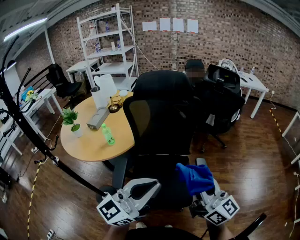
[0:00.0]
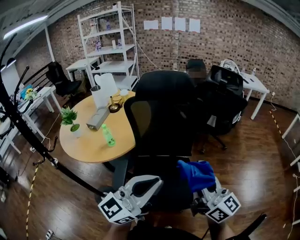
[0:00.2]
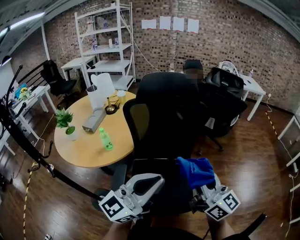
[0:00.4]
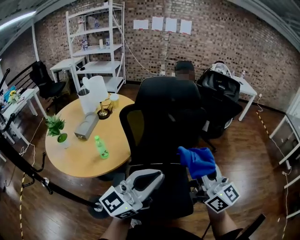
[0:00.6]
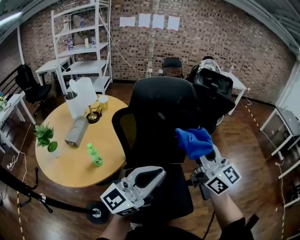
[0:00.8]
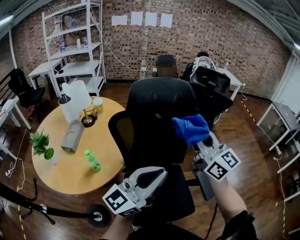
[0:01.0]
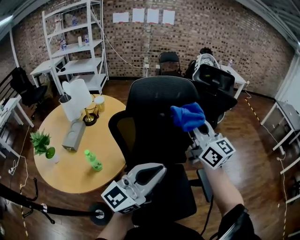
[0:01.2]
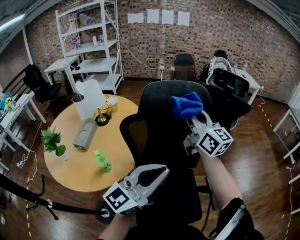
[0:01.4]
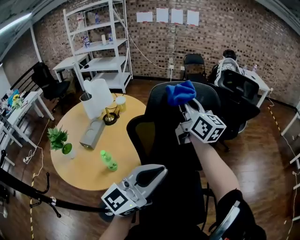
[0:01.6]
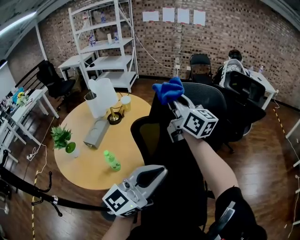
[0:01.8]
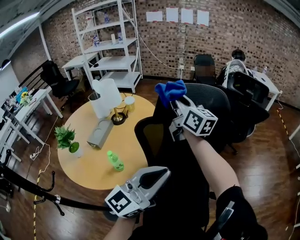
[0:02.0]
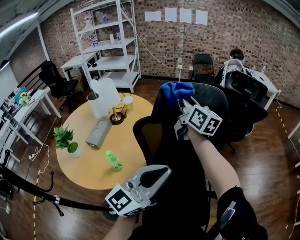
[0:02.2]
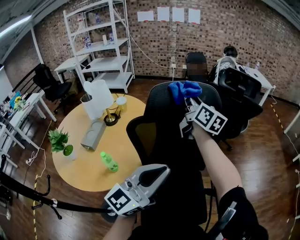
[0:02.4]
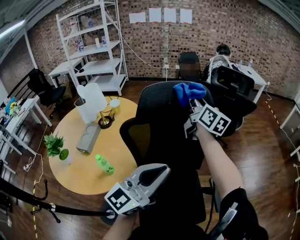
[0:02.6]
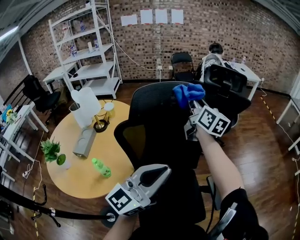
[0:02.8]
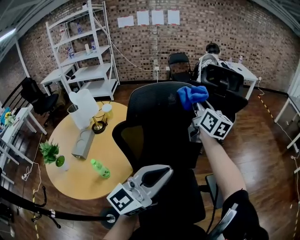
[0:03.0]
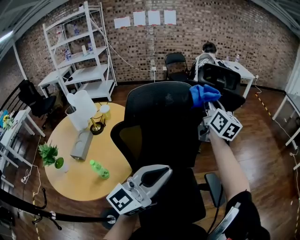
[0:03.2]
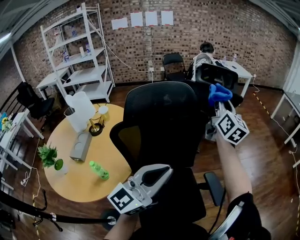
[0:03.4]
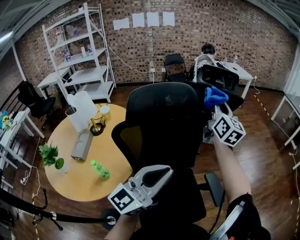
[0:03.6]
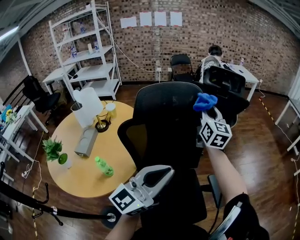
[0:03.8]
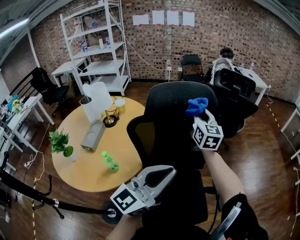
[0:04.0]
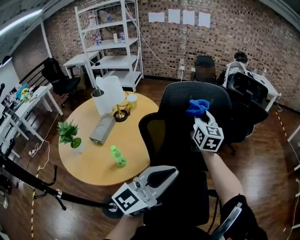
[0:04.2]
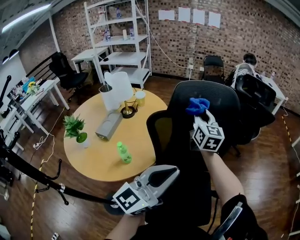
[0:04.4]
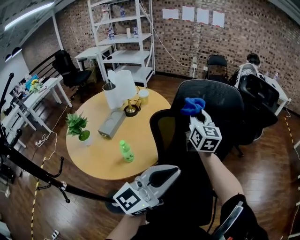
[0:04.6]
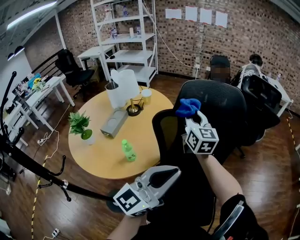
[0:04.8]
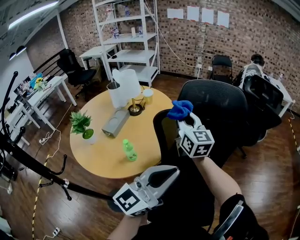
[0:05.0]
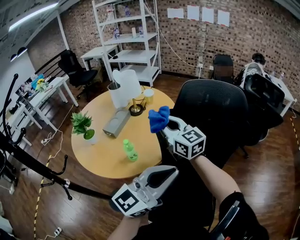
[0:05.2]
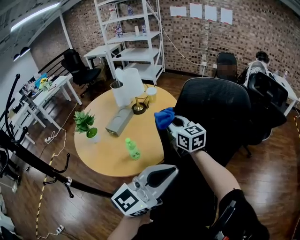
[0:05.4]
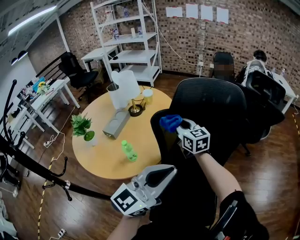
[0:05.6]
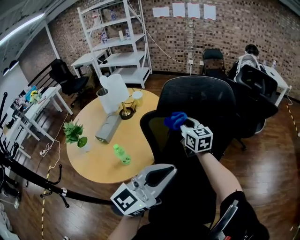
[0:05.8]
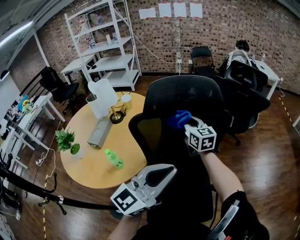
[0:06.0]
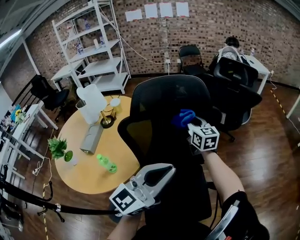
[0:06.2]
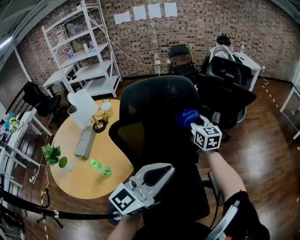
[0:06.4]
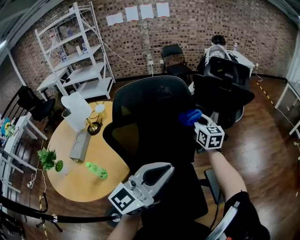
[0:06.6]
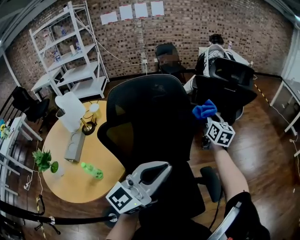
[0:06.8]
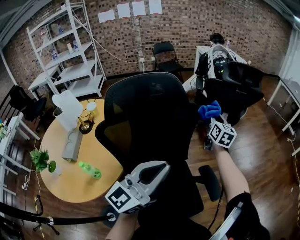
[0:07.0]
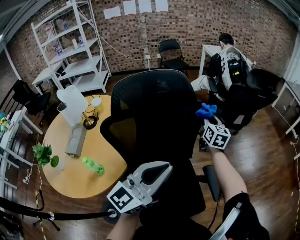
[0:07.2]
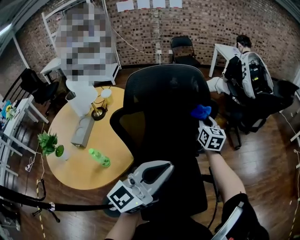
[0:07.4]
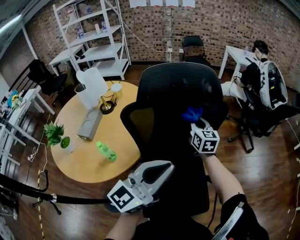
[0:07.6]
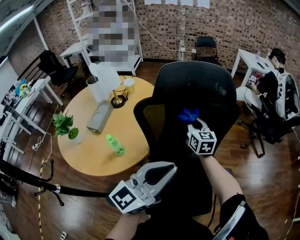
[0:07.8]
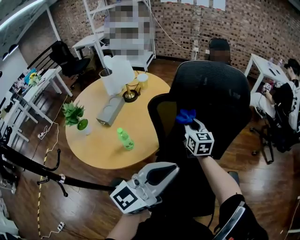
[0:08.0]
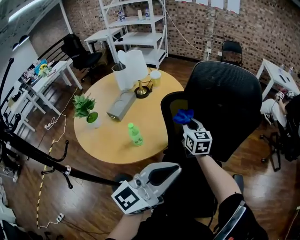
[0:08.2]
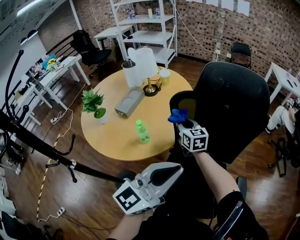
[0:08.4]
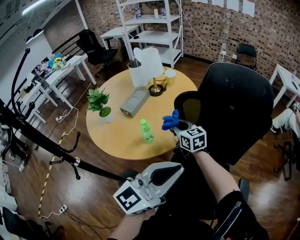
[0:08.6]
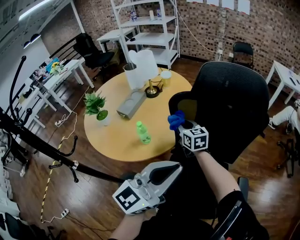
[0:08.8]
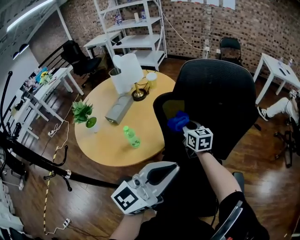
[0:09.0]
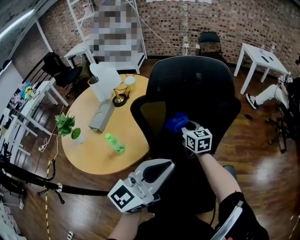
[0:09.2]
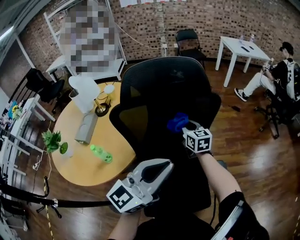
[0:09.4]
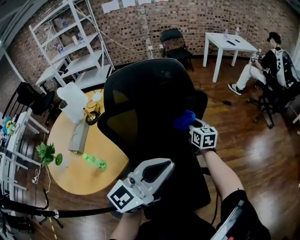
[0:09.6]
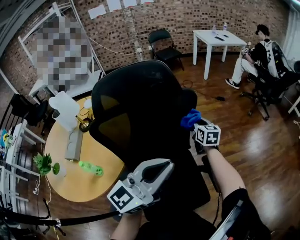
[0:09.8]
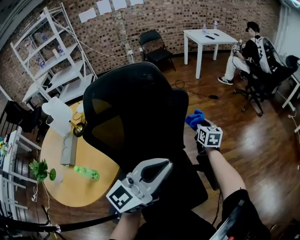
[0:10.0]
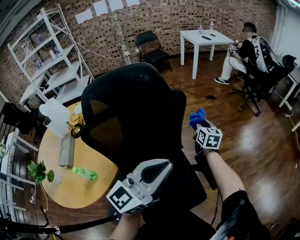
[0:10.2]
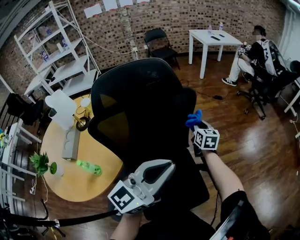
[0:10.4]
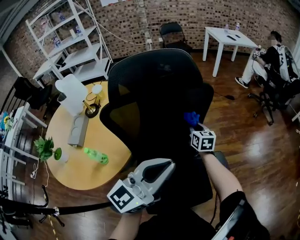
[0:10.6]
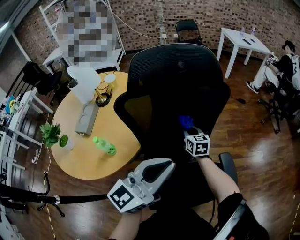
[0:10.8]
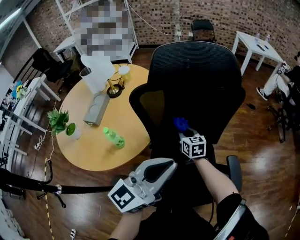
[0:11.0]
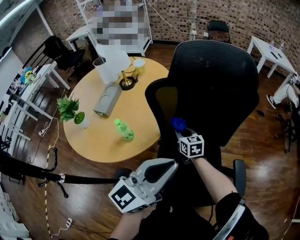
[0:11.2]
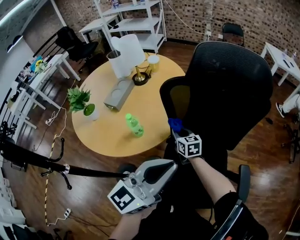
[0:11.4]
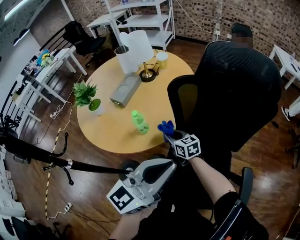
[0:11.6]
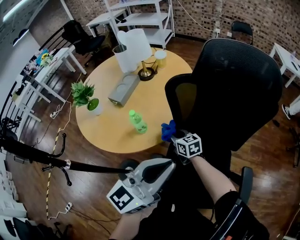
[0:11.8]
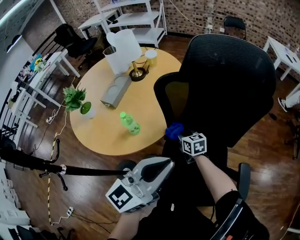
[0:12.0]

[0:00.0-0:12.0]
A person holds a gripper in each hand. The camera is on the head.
0:00.0 to 0:01.6: The right gripper is displaced forward and to the left by approximately 50 cm, while the left gripper travels forward and to the left by approximately 30 cm.
0:01.6 to 0:03.0: The right gripper travels to the right and forward by roughly 15 cm, and turns by approximately 20 degrees. Meanwhile the left gripper moves to the right, approximately 5 cm.
0:03.0 to 0:04.4: The left gripper shifts roughly 10 cm to the left and backward. Meanwhile the right gripper goes approximately 20 cm to the left, backward and downward.
0:04.4 to 0:06.0: The left gripper travels to the right by about 5 cm. Meanwhile the right gripper moves downward, about 10 cm, and reaches about 15 cm to the left, then returns.
0:07.6 to 0:09.0: The right gripper rotates approximately 30 degrees.
0:09.0 to 0:10.4: The right gripper ends up roughly 40 cm from where it was, and changes its angle by approximately 40 degrees, while the left gripper shifts by approximately 15 cm, and rotates some 30 degrees.
0:10.4 to 0:12.0: The right gripper moves approximately 40 cm, and changes its angle by some 50 degrees; the left gripper ends up some 20 cm from where it was, and rotates approximately 30 degrees.

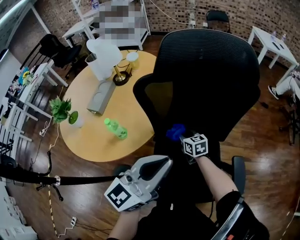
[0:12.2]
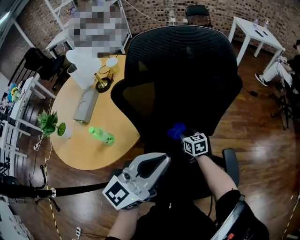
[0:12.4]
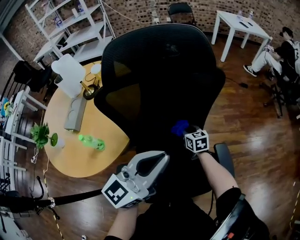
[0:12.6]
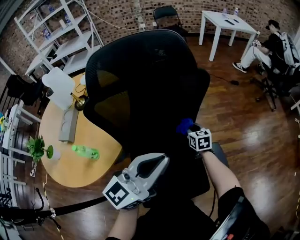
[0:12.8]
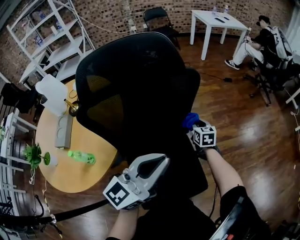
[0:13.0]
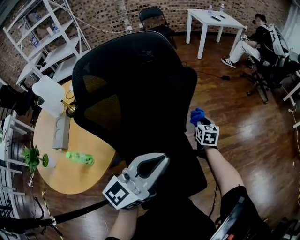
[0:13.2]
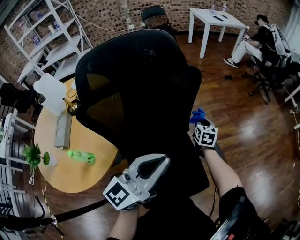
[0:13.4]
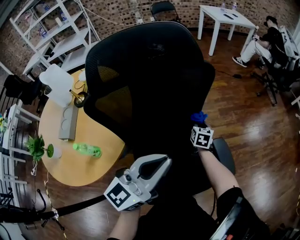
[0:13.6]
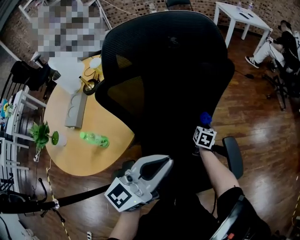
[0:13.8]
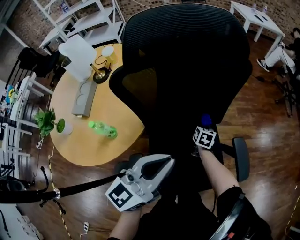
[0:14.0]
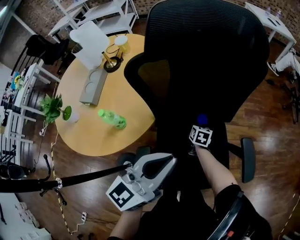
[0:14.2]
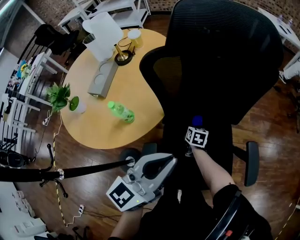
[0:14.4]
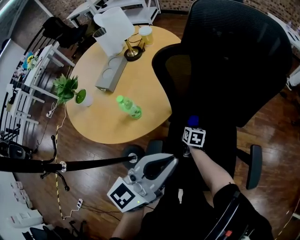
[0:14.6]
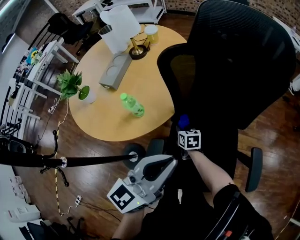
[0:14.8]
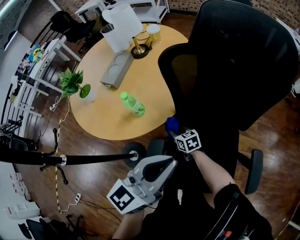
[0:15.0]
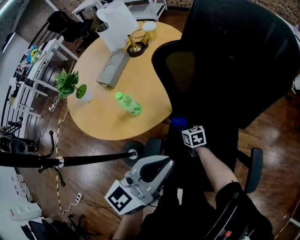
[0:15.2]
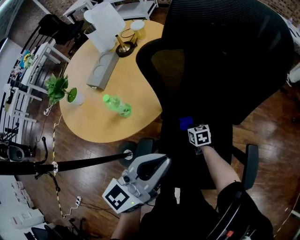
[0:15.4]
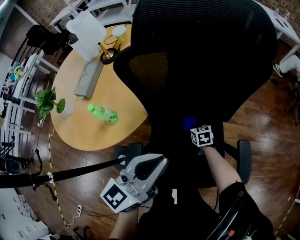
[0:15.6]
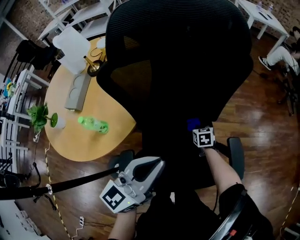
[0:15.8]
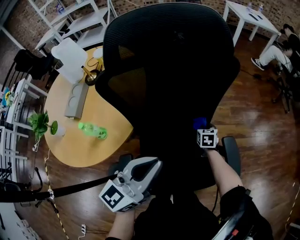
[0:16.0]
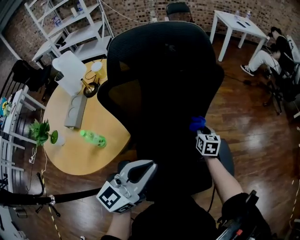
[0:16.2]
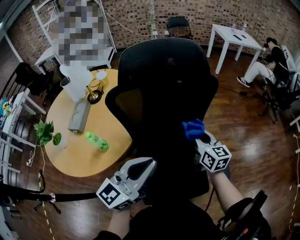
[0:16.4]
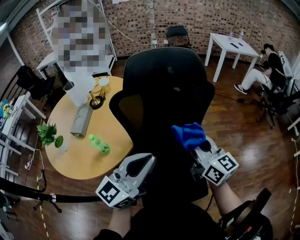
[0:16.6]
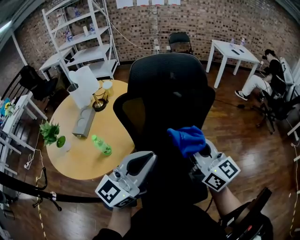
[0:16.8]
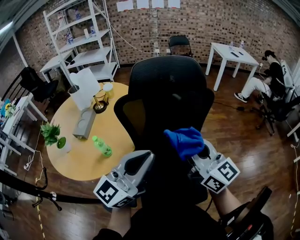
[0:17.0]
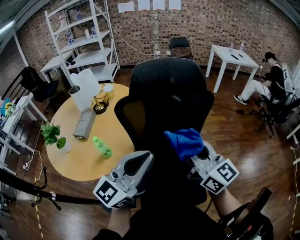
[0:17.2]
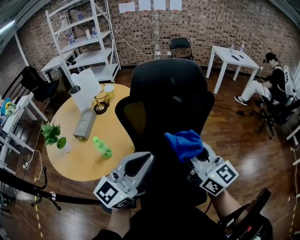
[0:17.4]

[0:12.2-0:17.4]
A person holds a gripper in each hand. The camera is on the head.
0:12.2 to 0:14.0: The right gripper swivels some 50 degrees.
0:14.0 to 0:15.6: The right gripper changes its angle by about 40 degrees.
0:15.6 to 0:17.4: The left gripper is displaced upward by about 15 cm, and changes its angle by roughly 20 degrees. Meanwhile the right gripper travels upward by about 50 cm, and points its fingers about 60 degrees further upward.

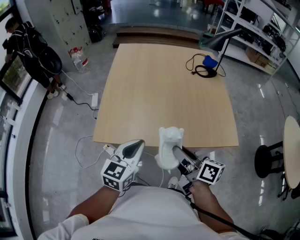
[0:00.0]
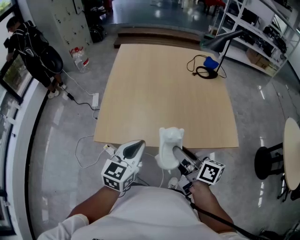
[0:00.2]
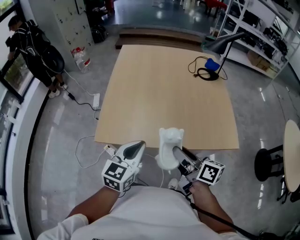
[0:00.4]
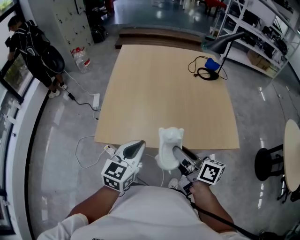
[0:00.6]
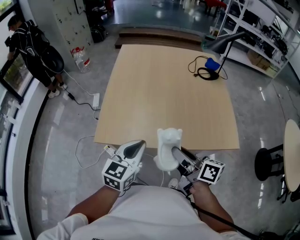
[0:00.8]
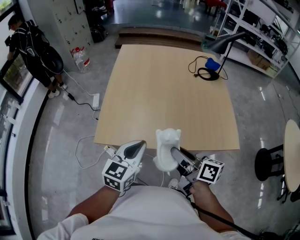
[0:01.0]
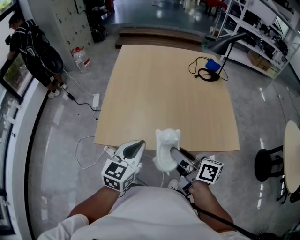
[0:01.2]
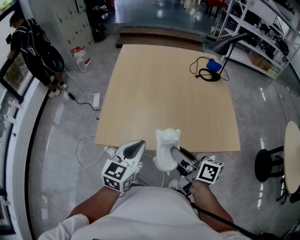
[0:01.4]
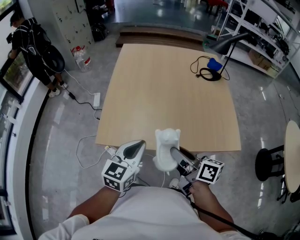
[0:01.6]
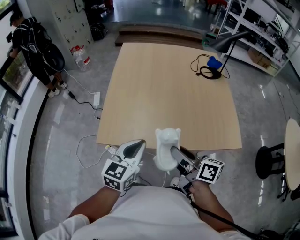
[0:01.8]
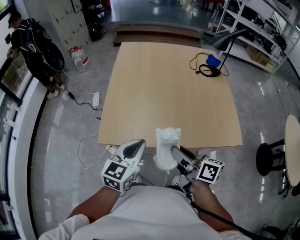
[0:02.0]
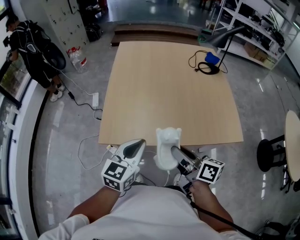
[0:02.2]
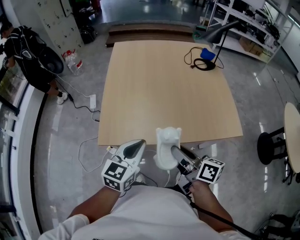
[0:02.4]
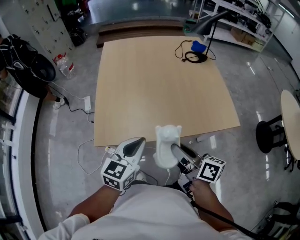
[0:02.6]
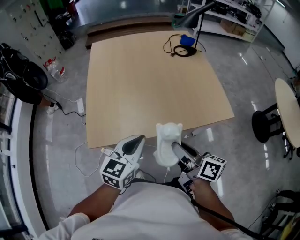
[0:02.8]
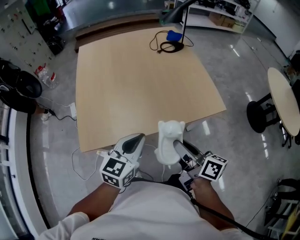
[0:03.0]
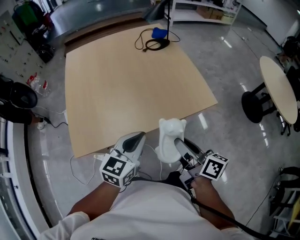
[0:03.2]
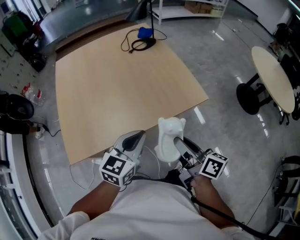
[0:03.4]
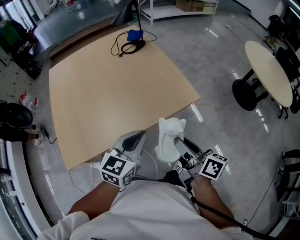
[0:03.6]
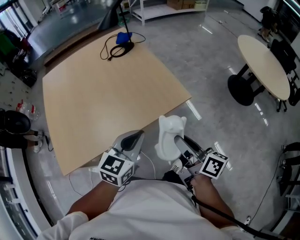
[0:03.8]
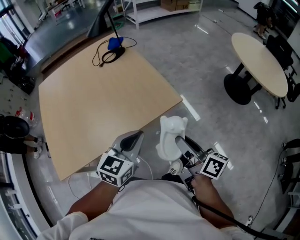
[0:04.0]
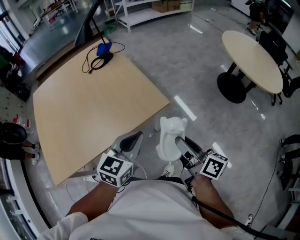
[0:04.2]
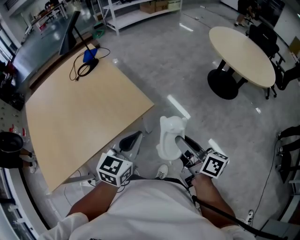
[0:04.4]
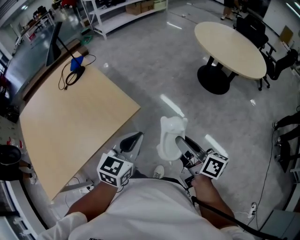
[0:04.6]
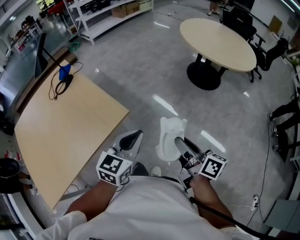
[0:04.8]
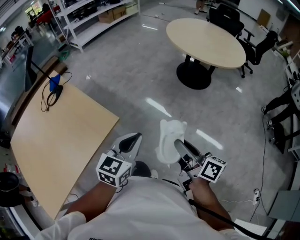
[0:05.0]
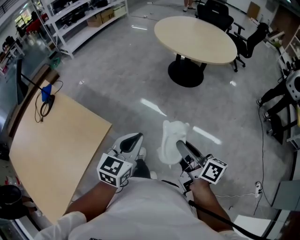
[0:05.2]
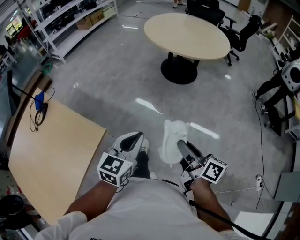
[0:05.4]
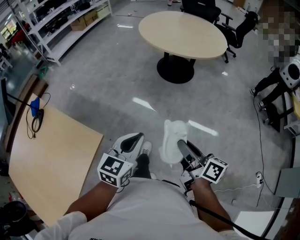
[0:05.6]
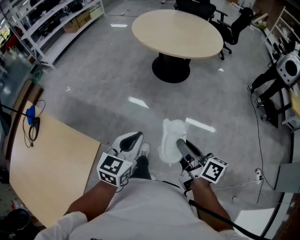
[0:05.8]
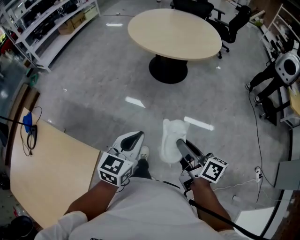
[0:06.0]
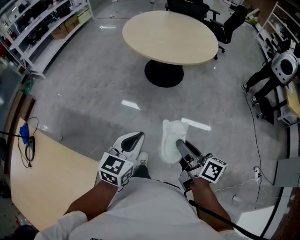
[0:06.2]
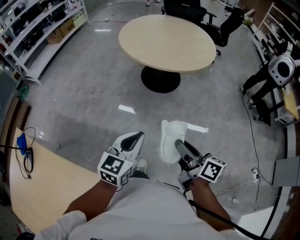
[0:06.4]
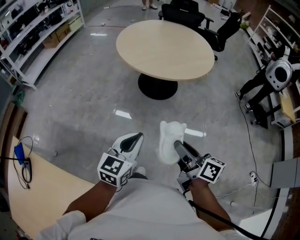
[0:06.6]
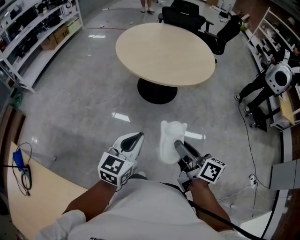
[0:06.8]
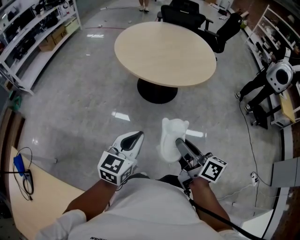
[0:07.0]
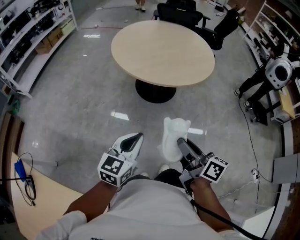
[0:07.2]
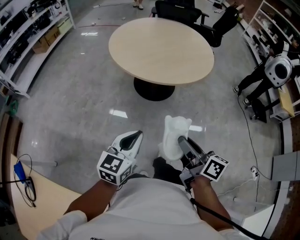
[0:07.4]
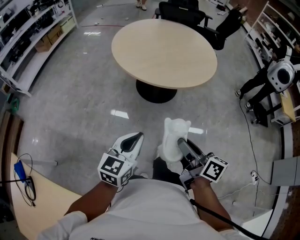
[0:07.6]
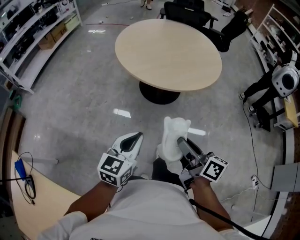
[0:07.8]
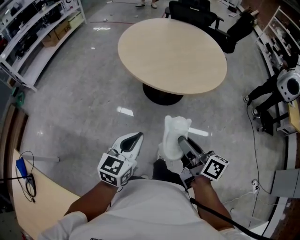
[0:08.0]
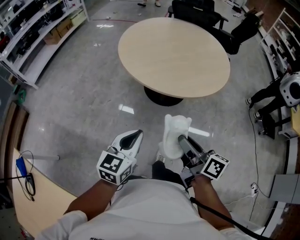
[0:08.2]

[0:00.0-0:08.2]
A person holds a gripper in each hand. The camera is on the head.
0:00.0 to 0:01.6: There are only small adjustments of the grippers.
0:01.6 to 0:03.2: The left gripper moves approximately 10 cm, and rotates some 30 degrees. The right gripper changes place by approximately 15 cm, and swivels about 30 degrees.
0:03.2 to 0:05.0: The right gripper ends up about 40 cm from where it was, and swivels approximately 40 degrees; the left gripper moves roughly 40 cm, and changes its angle by some 40 degrees.
0:05.0 to 0:06.6: The two grippers go roughly 25 cm forward. The right gripper rotates some 20 degrees. Meanwhile the left gripper turns by roughly 20 degrees.
0:06.6 to 0:08.2: Both grippers move forward, about 15 cm.
